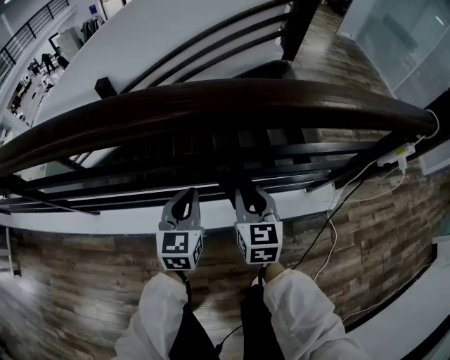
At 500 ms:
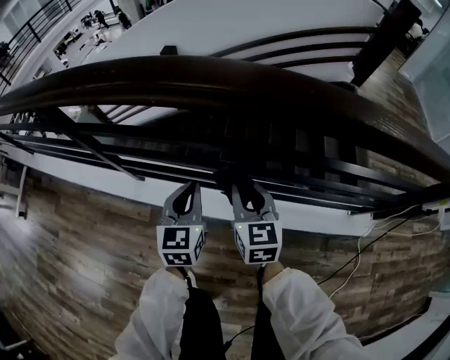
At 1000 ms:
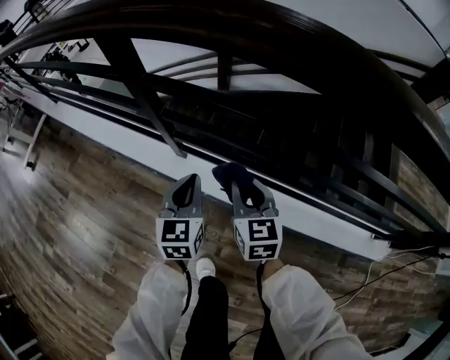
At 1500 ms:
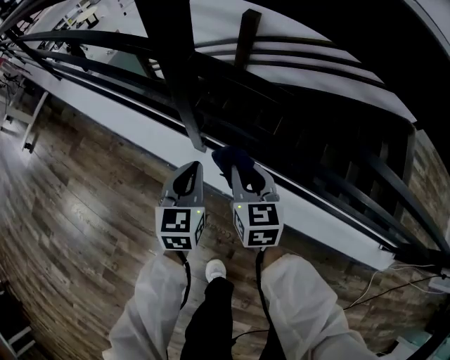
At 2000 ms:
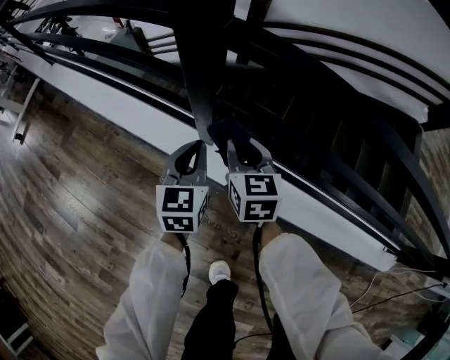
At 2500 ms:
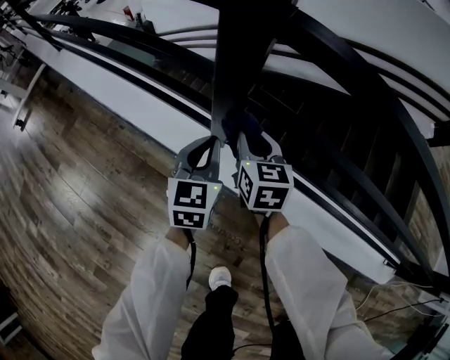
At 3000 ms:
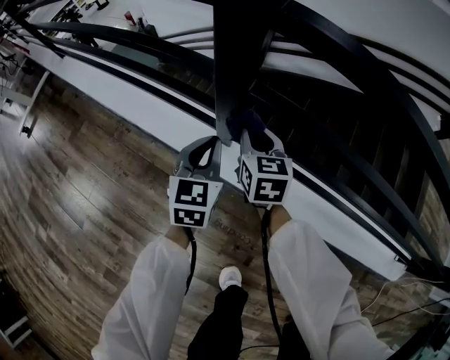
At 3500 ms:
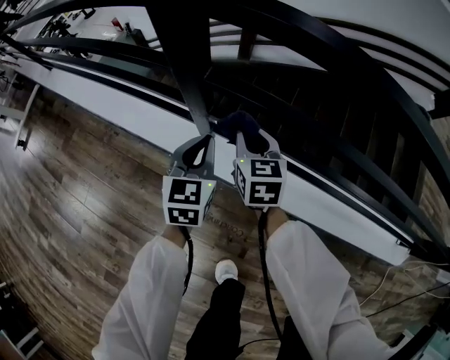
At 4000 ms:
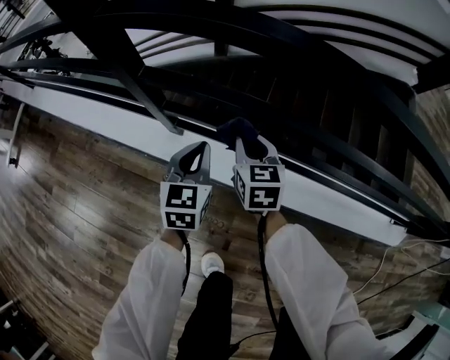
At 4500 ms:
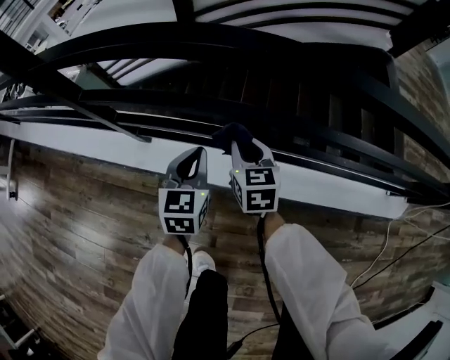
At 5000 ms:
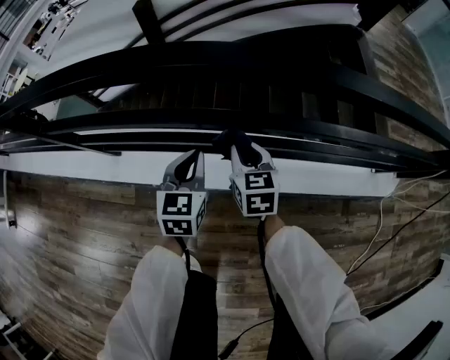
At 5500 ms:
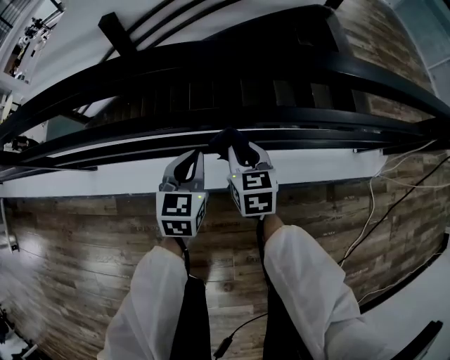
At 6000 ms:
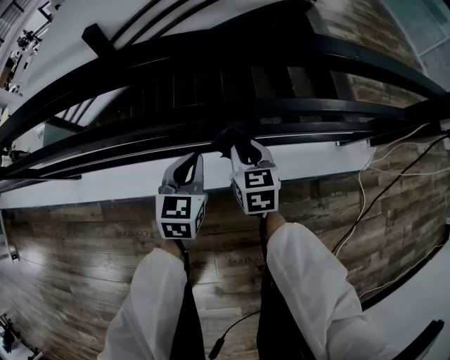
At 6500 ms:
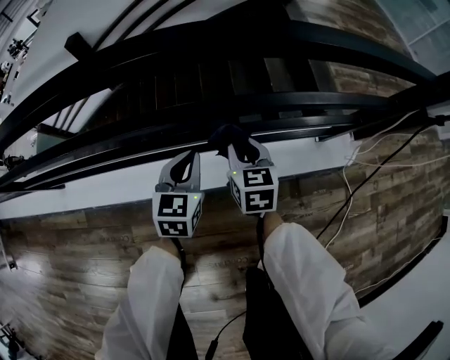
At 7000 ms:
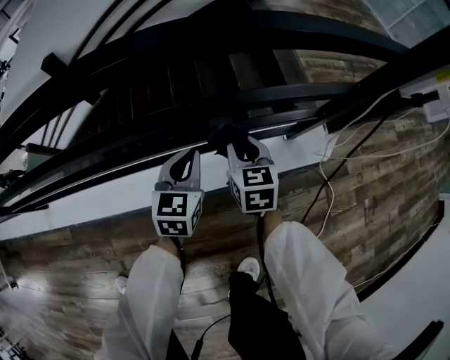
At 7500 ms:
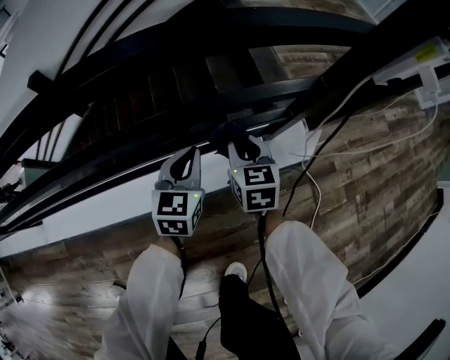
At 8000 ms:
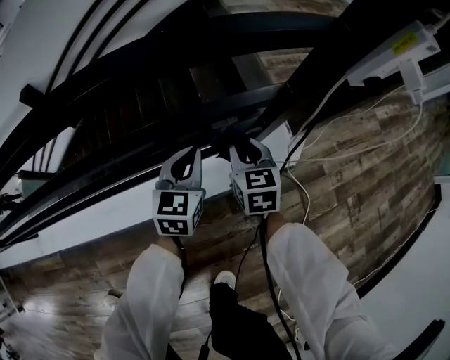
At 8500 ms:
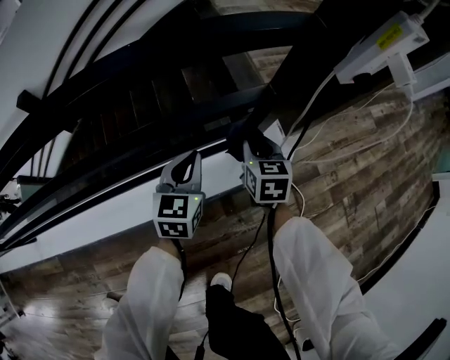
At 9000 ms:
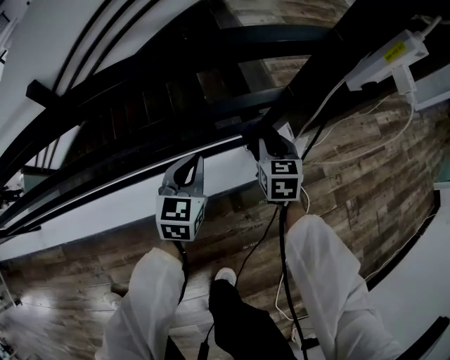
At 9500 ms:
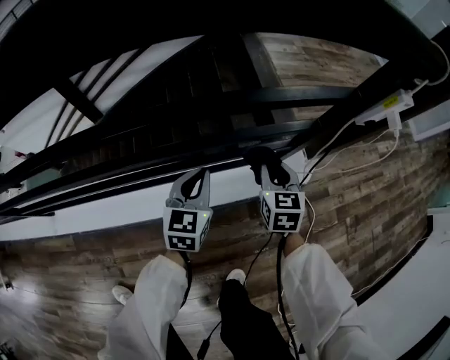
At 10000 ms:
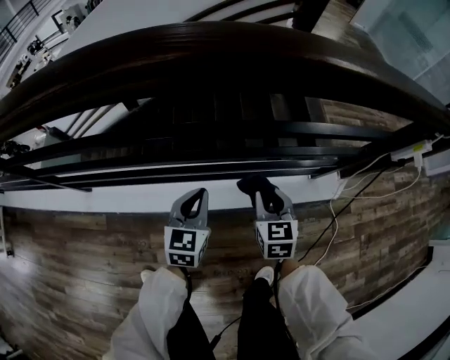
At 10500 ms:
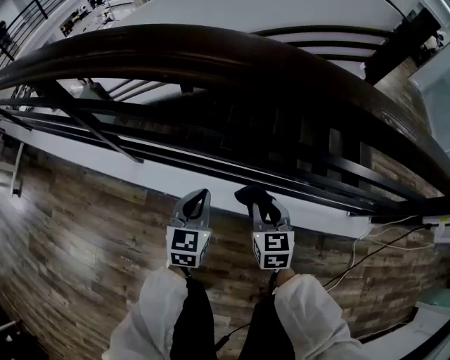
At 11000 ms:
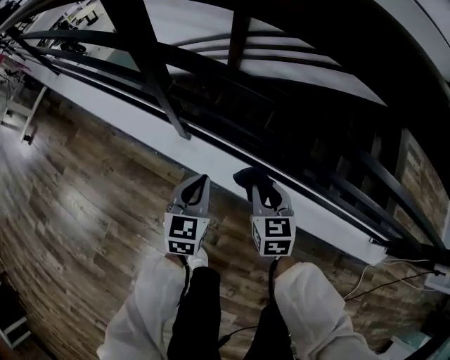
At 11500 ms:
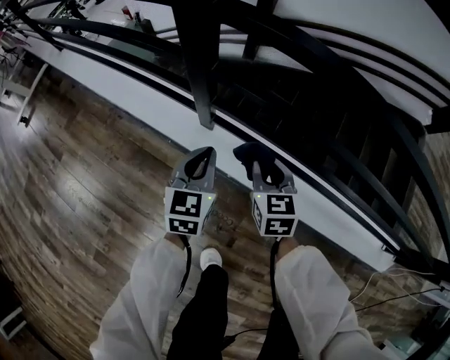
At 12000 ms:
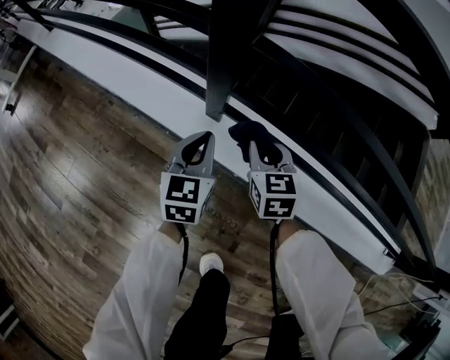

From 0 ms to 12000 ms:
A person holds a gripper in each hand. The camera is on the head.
From 0 ms to 2000 ms: Both grippers are carried roughly 70 cm. The right gripper swivels some 40 degrees; the left gripper changes its angle by some 30 degrees.
From 2000 ms to 4000 ms: The grippers both shift to the right by about 15 cm.
From 4000 ms to 6000 ms: The two grippers travel together, to the right, about 50 cm. The left gripper turns by some 20 degrees, while the right gripper rotates roughly 20 degrees.
From 6000 ms to 8000 ms: The two grippers travel together, to the right, approximately 40 cm.
From 8000 ms to 10000 ms: The right gripper shifts roughly 35 cm to the left, backward and upward, while the left gripper is displaced to the left and backward by roughly 35 cm.
From 10000 ms to 12000 ms: The two grippers travel together, roughly 80 cm. The right gripper turns by some 30 degrees. The left gripper swivels some 30 degrees.

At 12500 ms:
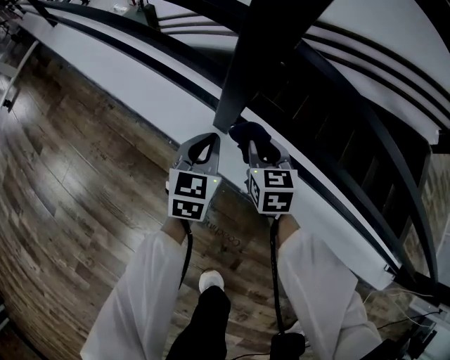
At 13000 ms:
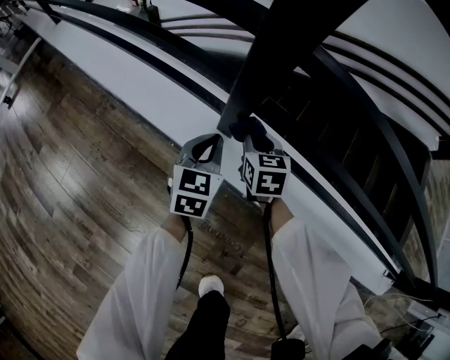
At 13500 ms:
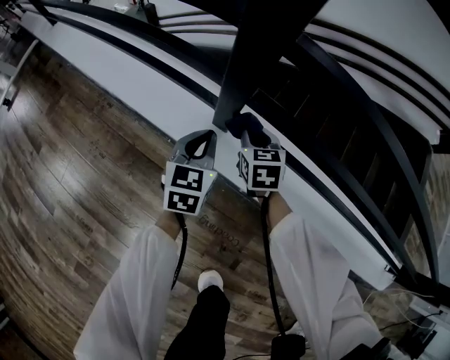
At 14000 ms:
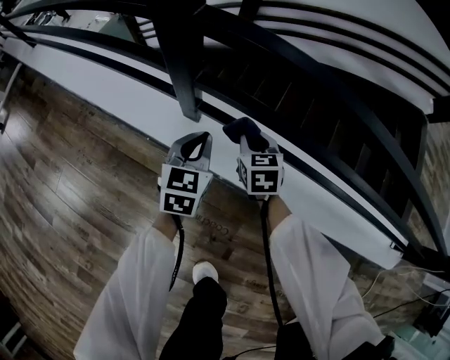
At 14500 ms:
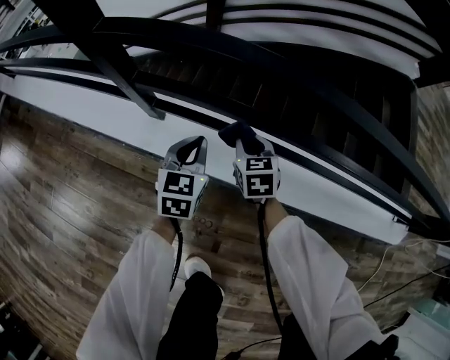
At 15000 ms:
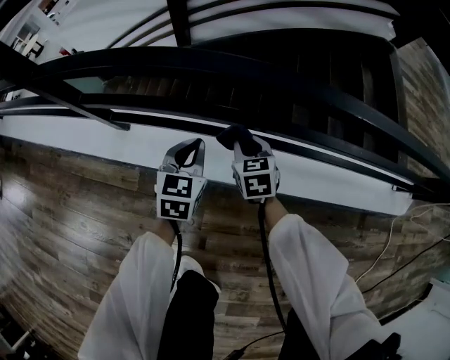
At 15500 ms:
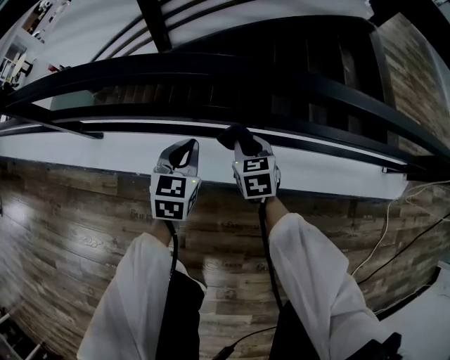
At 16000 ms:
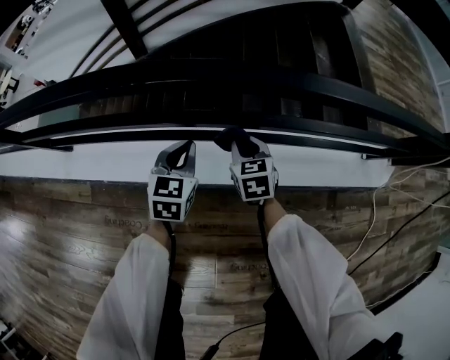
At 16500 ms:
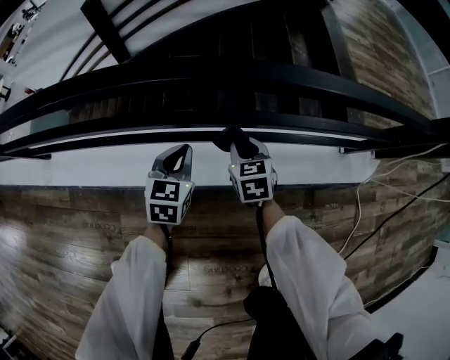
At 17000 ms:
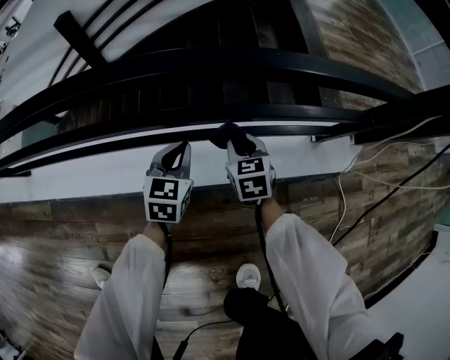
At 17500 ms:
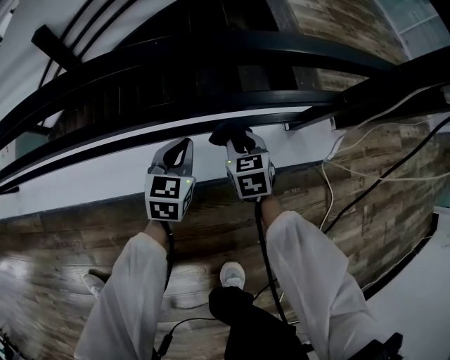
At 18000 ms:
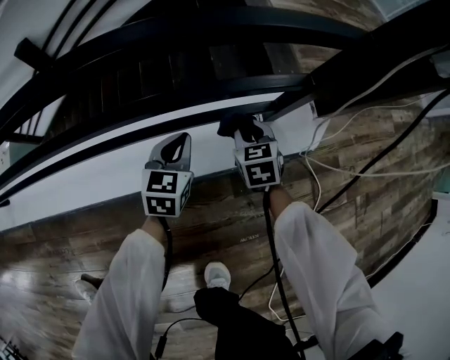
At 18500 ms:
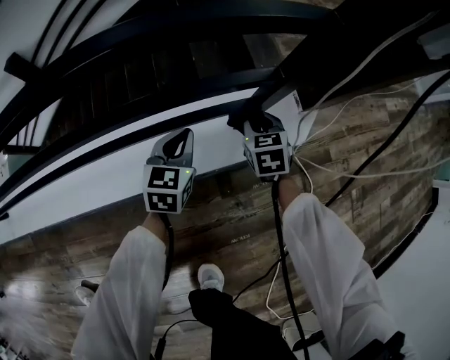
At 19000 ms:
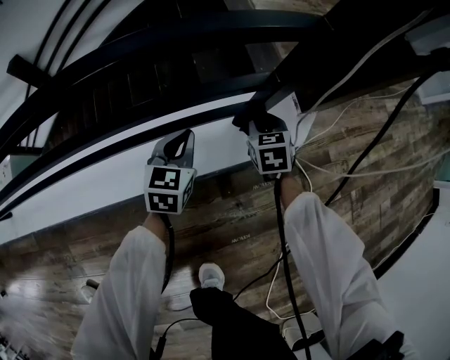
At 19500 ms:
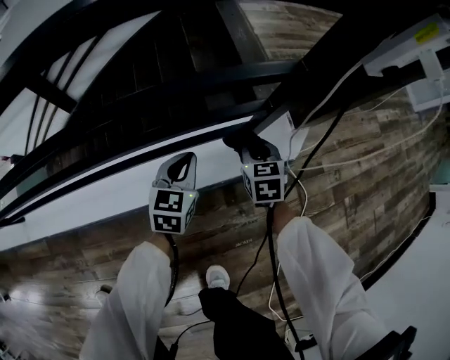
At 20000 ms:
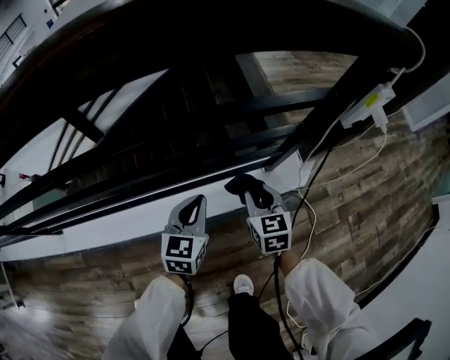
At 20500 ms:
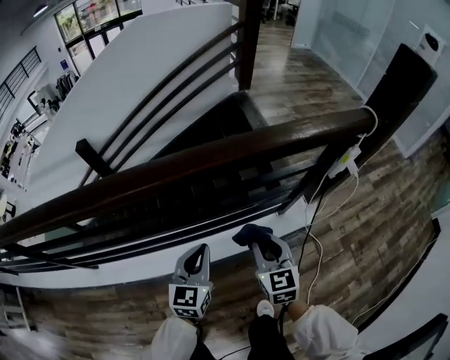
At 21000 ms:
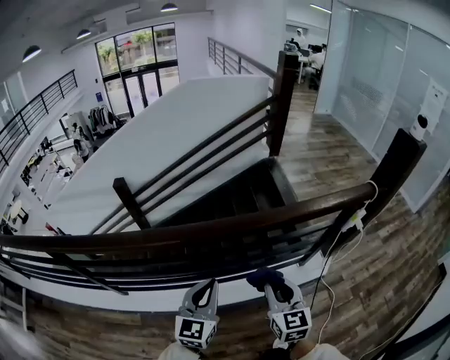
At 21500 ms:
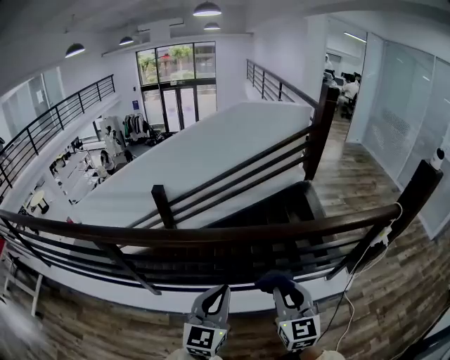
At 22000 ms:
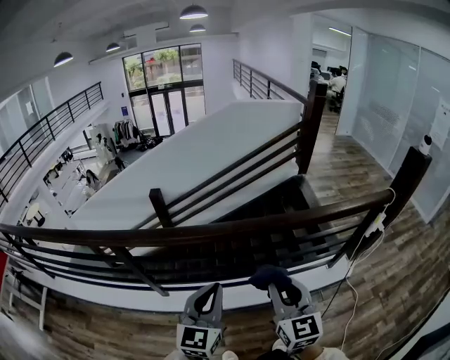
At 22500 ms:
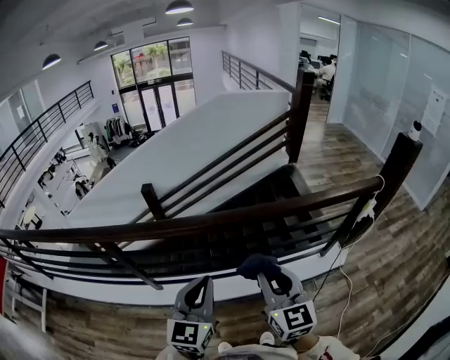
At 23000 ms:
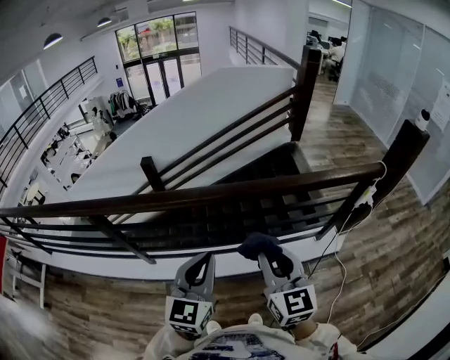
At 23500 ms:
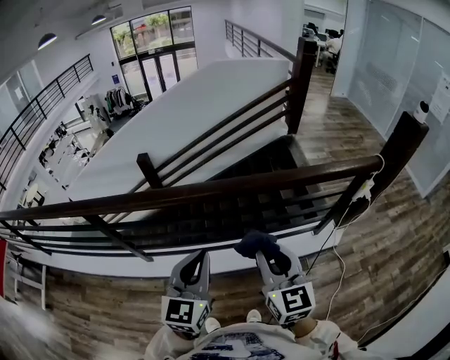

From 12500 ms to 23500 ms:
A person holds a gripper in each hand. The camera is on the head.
From 12500 ms to 14500 ms: Both grippers move to the right, approximately 20 cm.
From 14500 ms to 16000 ms: Both grippers move to the right, approximately 40 cm.
From 16000 ms to 18000 ms: Both grippers are carried to the right, about 50 cm.
From 18000 ms to 20000 ms: The two grippers go approximately 30 cm upward.
From 20000 ms to 21500 ms: The two grippers travel together, to the left and backward, some 50 cm. The grippers both shift upward by about 50 cm. The left gripper changes its angle by approximately 30 degrees. The right gripper rotates about 30 degrees.
From 21500 ms to 23500 ms: Both grippers move upward, approximately 5 cm. The right gripper travels to the left and back again, about 5 cm each way. Meanwhile the left gripper travels to the left and back again, some 5 cm each way.

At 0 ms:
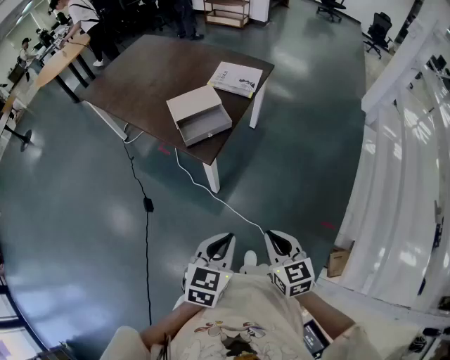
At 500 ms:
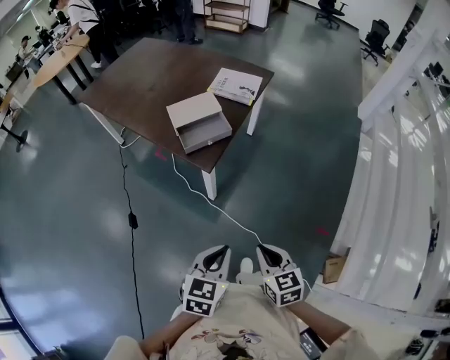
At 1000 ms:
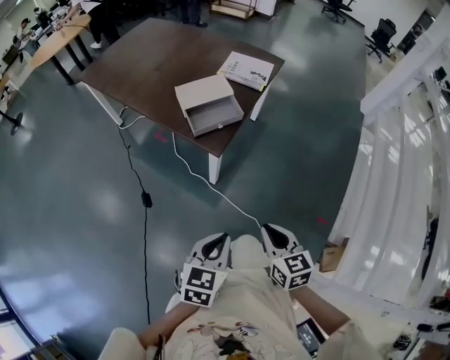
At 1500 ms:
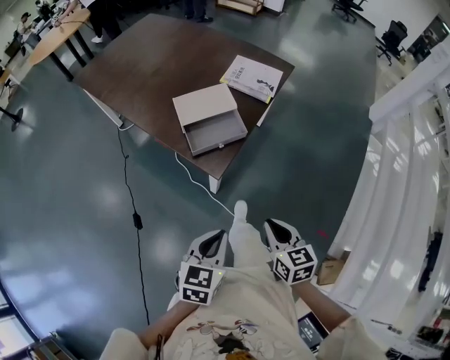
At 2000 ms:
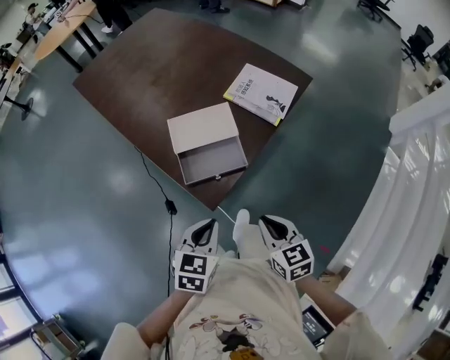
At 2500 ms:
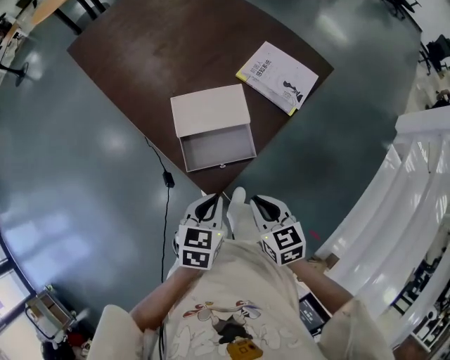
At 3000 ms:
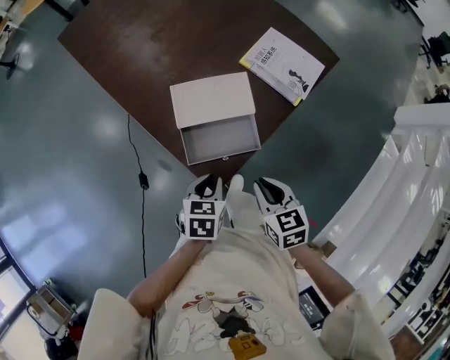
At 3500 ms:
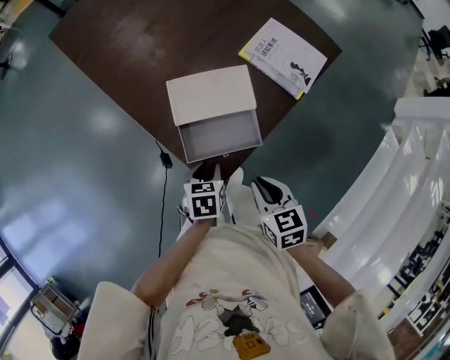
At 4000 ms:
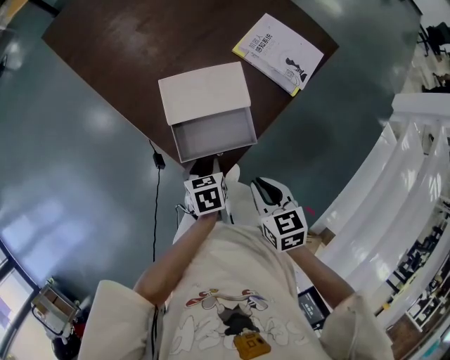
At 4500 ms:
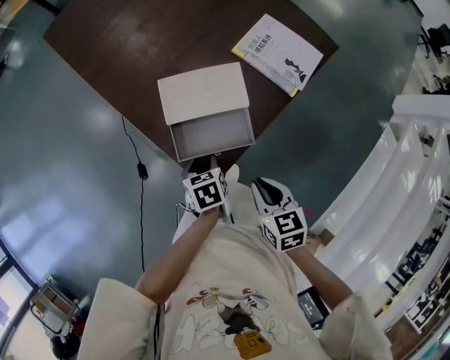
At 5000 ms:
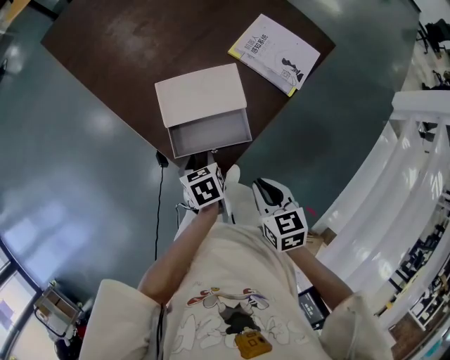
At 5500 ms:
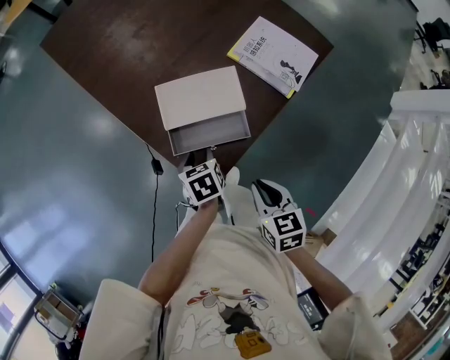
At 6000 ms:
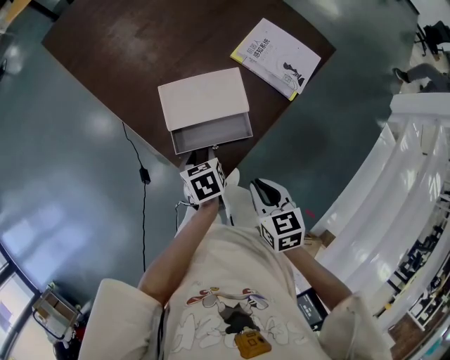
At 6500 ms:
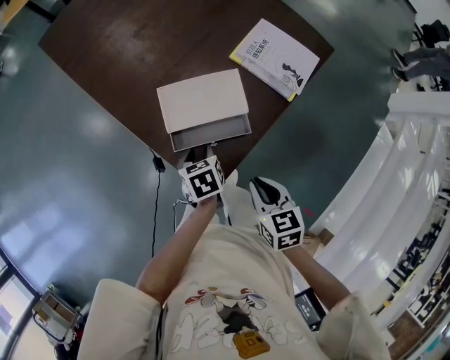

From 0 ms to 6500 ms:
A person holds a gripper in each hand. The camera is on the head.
From 0 ms to 2000 ms: The two grippers go about 35 cm forward.
From 2000 ms to 4500 ms: The left gripper is displaced downward and forward by approximately 25 cm, swivels about 40 degrees, and opens. Meanwhile the right gripper shifts roughly 10 cm forward and downward.
From 4500 ms to 6500 ms: The left gripper shifts approximately 5 cm forward.
